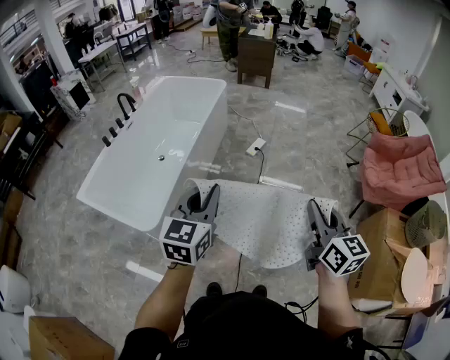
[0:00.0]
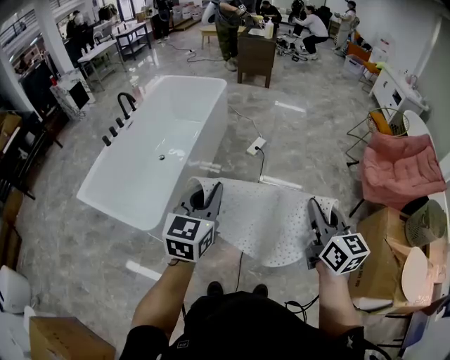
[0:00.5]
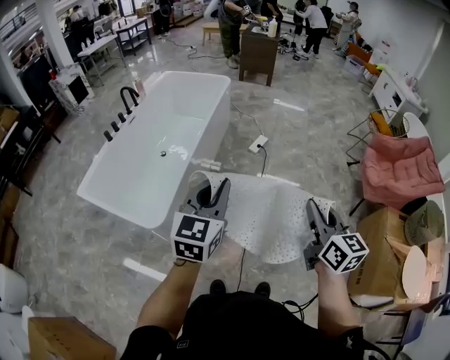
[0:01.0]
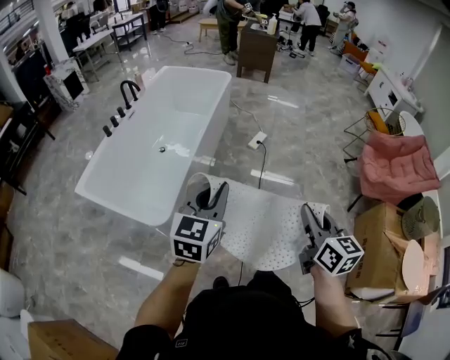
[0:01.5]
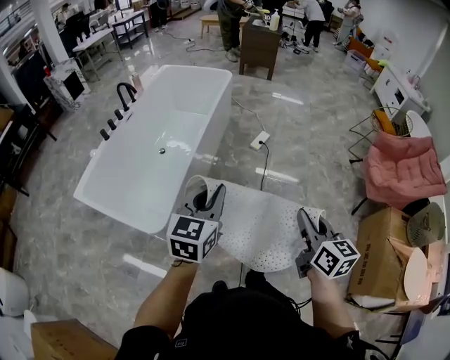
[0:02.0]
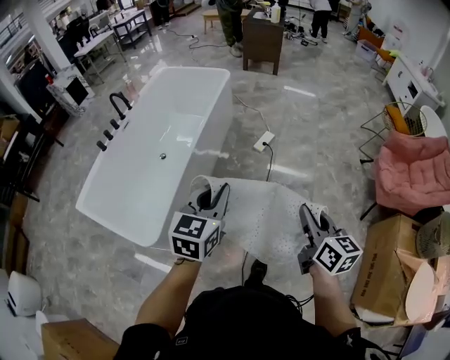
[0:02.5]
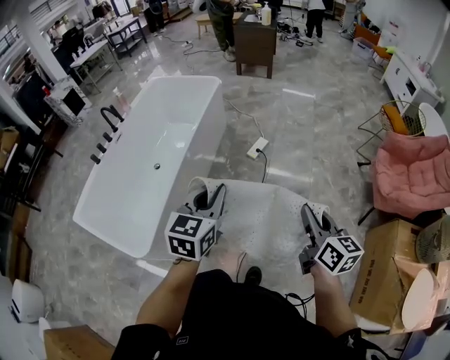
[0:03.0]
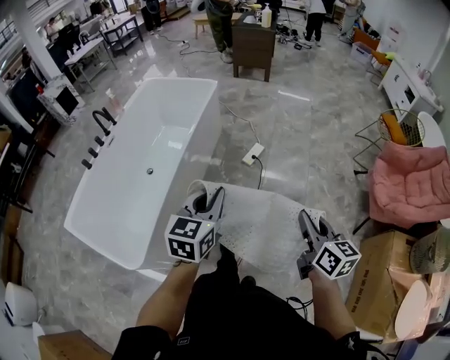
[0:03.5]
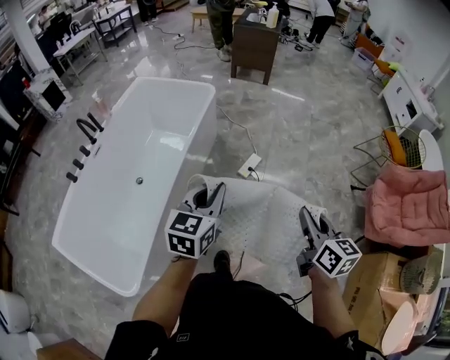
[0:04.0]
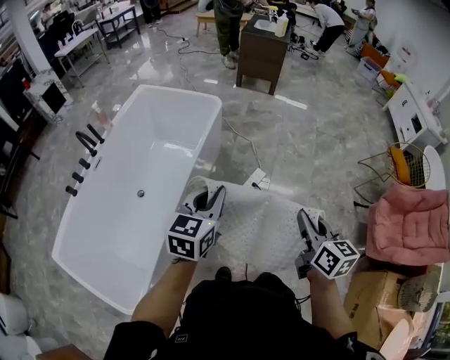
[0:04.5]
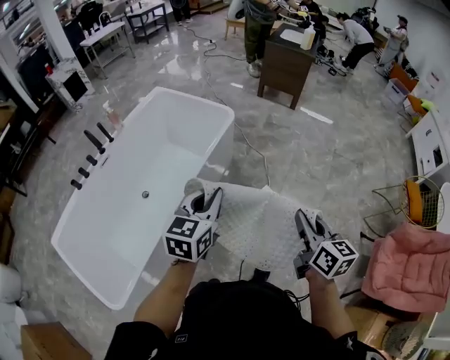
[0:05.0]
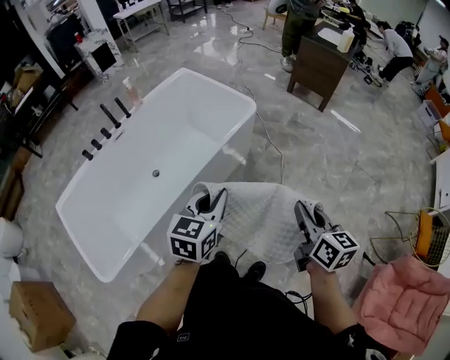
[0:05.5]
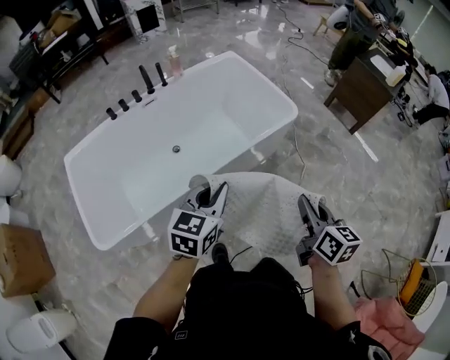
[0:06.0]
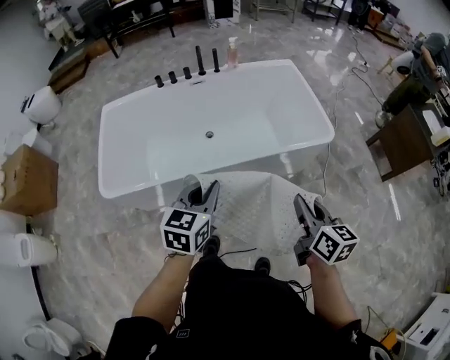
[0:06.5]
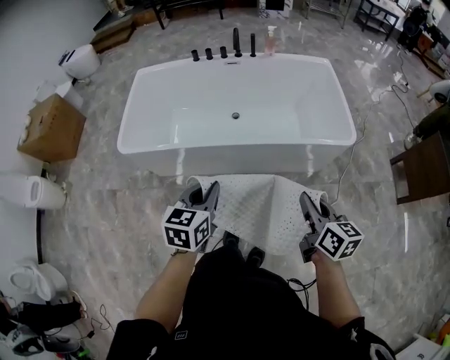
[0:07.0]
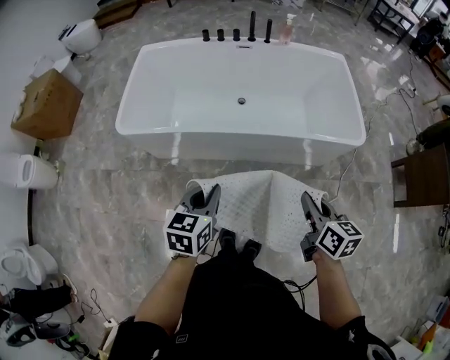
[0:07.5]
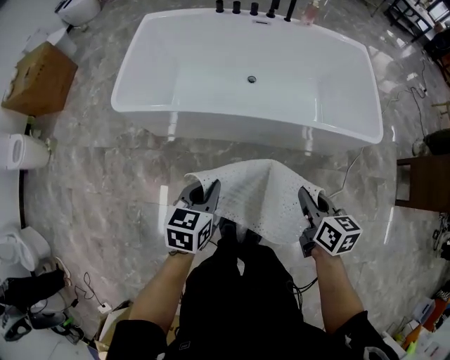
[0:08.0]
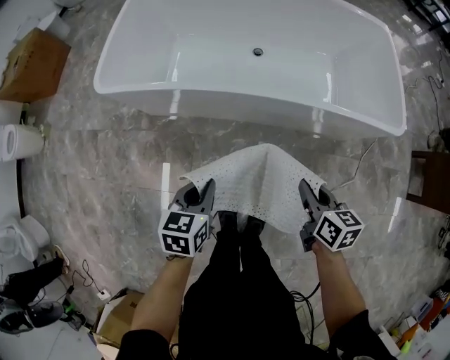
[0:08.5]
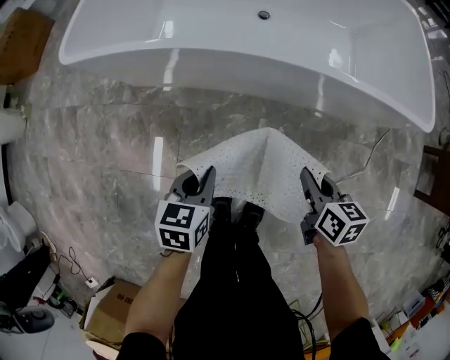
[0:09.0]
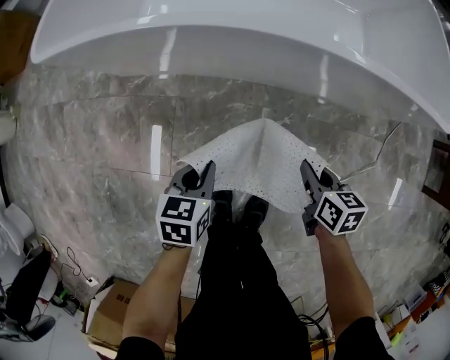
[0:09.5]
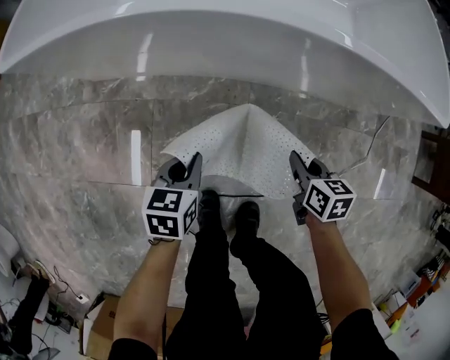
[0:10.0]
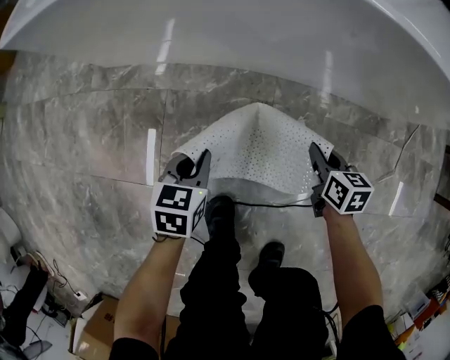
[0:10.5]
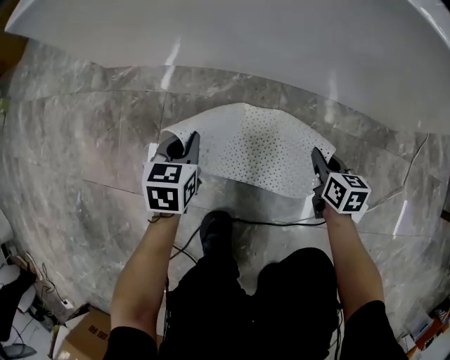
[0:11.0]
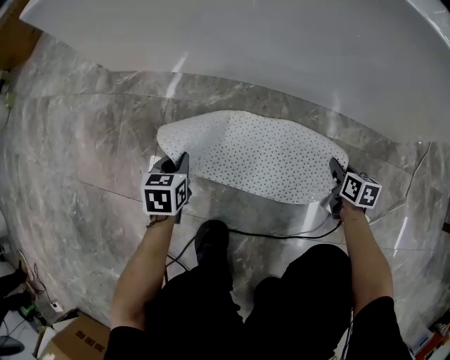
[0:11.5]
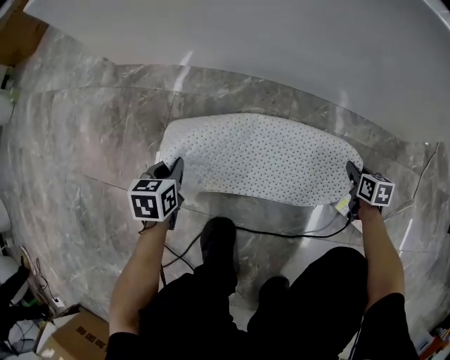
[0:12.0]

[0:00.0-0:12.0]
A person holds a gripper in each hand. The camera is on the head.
0:00.0 to 0:02.0: The left gripper is displaced to the left by about 10 cm. The right gripper goes some 10 cm to the left and downward.
0:02.0 to 0:04.0: The two grippers travel together, forward, some 40 cm.
0:04.0 to 0:06.0: The right gripper shifts by some 40 cm, and turns by roughly 40 degrees; the left gripper moves some 20 cm, and turns by roughly 40 degrees.
0:06.0 to 0:08.0: Both grippers move downward, some 15 cm. The right gripper swivels about 50 degrees. Meanwhile the left gripper turns by about 50 degrees.
0:08.0 to 0:10.0: Both grippers travel together downward, some 50 cm.
0:10.0 to 0:12.0: The right gripper shifts roughly 35 cm downward and to the right. Meanwhile the left gripper shifts about 30 cm downward and to the left.

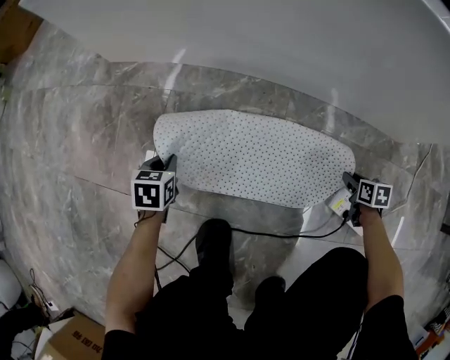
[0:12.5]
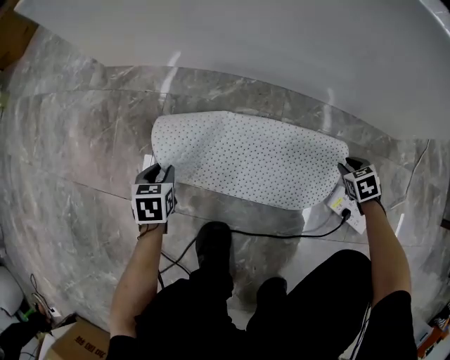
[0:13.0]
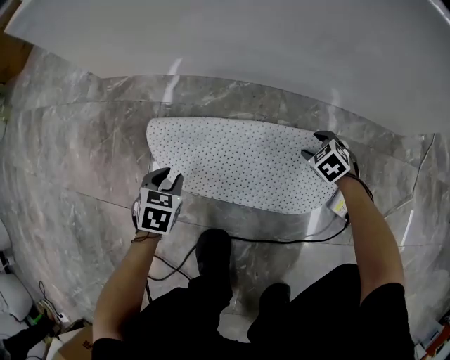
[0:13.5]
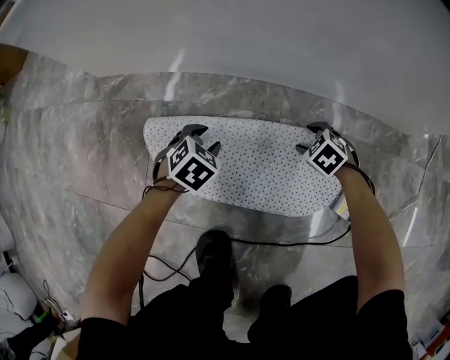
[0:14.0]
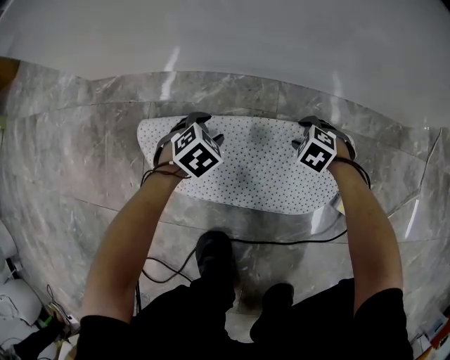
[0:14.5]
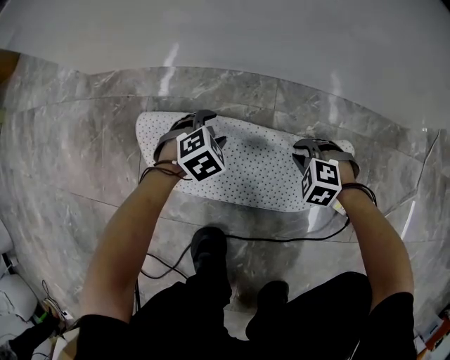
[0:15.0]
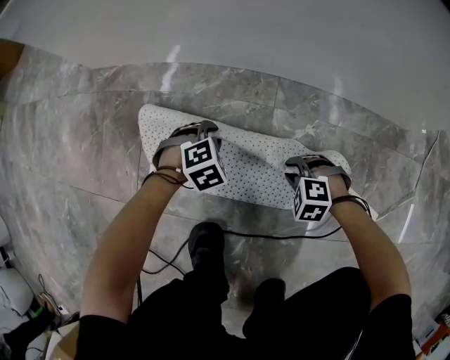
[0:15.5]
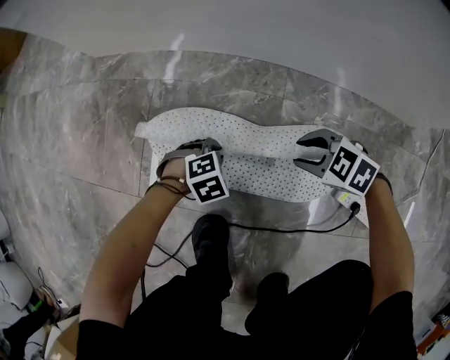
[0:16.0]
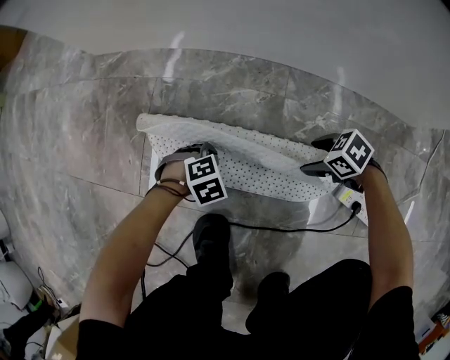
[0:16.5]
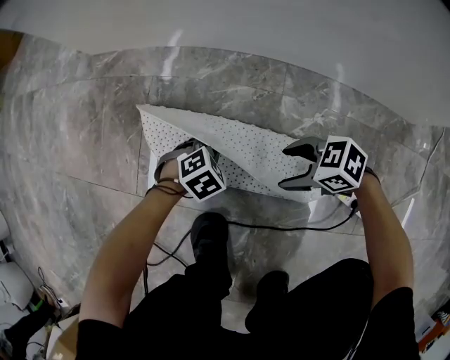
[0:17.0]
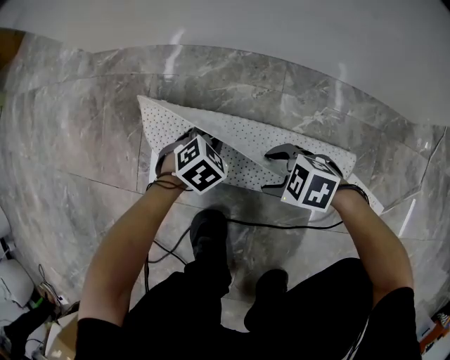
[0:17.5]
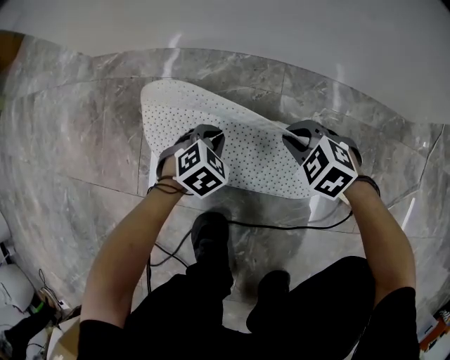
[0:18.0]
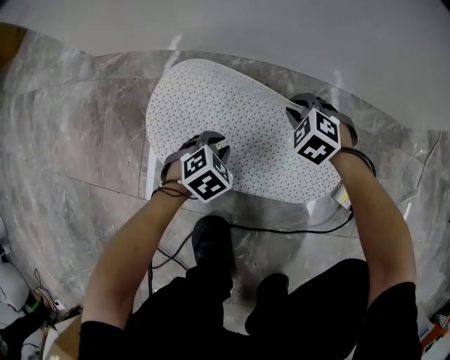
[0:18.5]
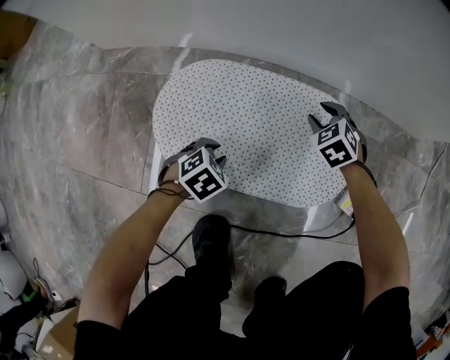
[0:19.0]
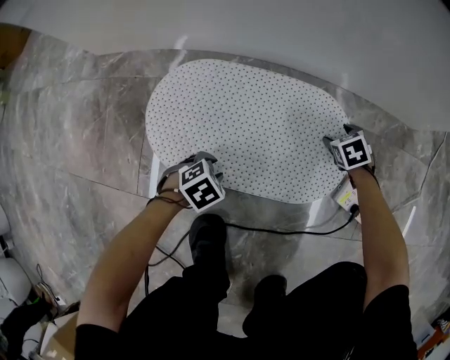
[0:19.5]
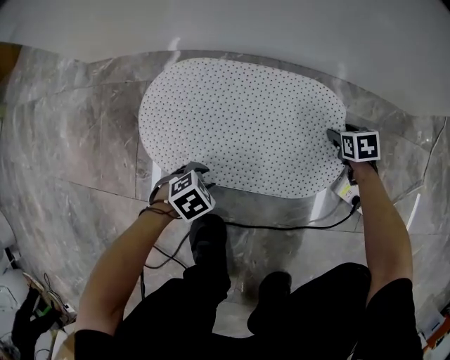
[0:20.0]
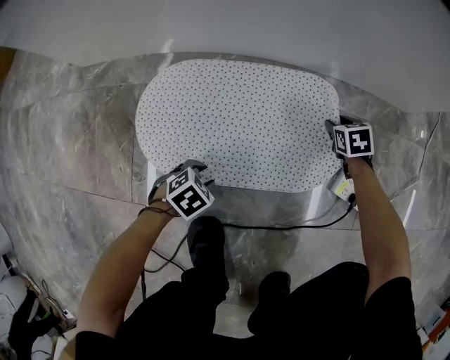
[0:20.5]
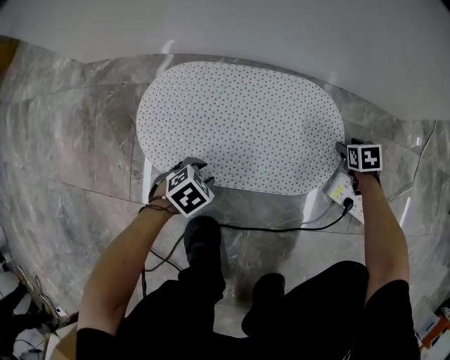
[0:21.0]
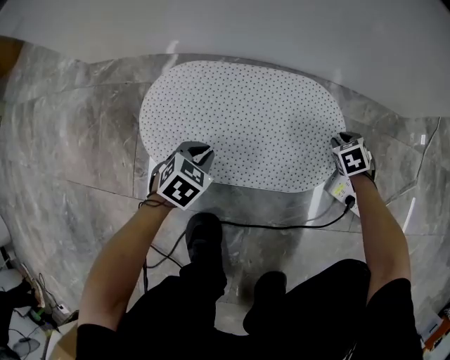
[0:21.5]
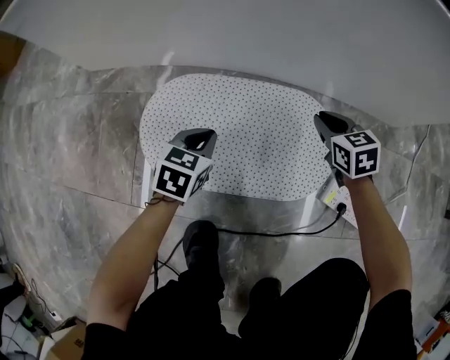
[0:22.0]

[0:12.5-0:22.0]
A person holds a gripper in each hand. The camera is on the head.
0:12.5 to 0:14.5: The right gripper shifts by roughly 20 cm, rotates around the line of its fingers by about 60 degrees, counterclockwise from behind, and opens its fingers. The left gripper changes place by approximately 20 cm, rolls clockwise, seen from behind, by roughly 50 degrees, and opens up.
0:14.5 to 0:16.5: The left gripper ends up about 15 cm from where it was, turns by roughly 20 degrees, and closes its fingers. The right gripper goes upward and returns, some 10 cm each way, turns by about 40 degrees, and closes, then reopens.
0:16.5 to 0:18.0: The left gripper moves approximately 10 cm, and rotates roughly 20 degrees. Meanwhile the right gripper moves approximately 10 cm, rotates roughly 40 degrees, and closes up.
0:18.0 to 0:20.0: The left gripper ends up some 15 cm from where it was, changes its angle by approximately 20 degrees, and opens. The right gripper moves approximately 25 cm, twists roughly 60 degrees clockwise, seen from behind, and opens its fingers.
0:20.0 to 0:22.0: The left gripper changes place by approximately 20 cm, swivels approximately 50 degrees, and closes. The right gripper goes roughly 15 cm upward, turns by about 30 degrees, and closes.

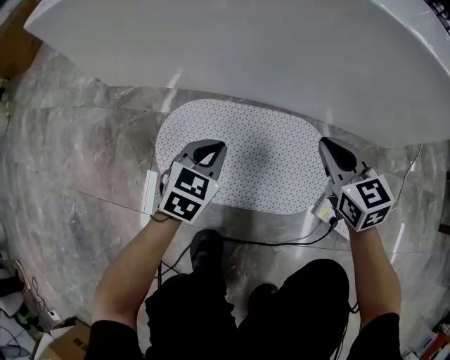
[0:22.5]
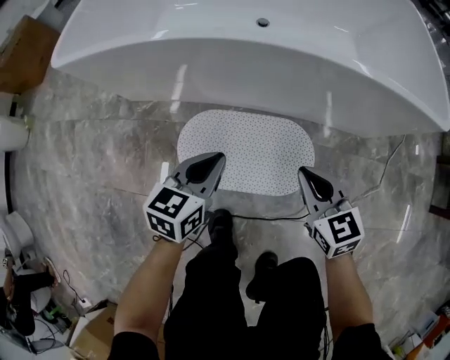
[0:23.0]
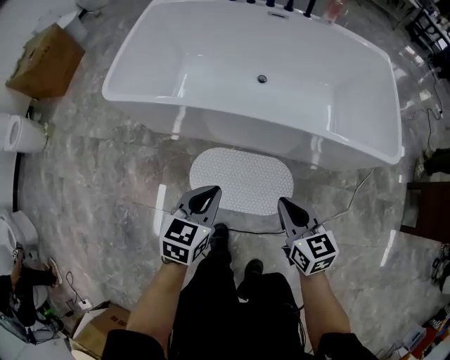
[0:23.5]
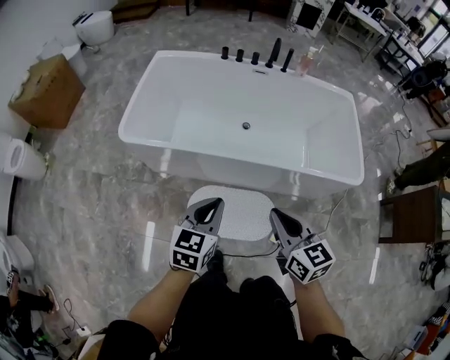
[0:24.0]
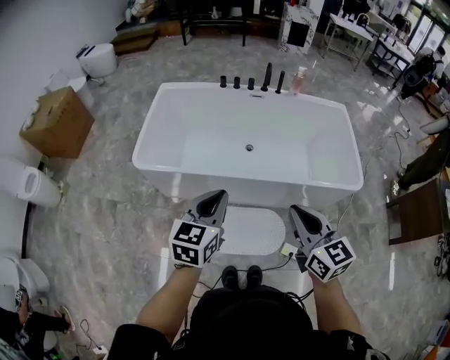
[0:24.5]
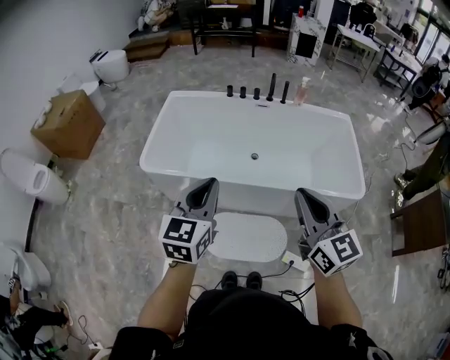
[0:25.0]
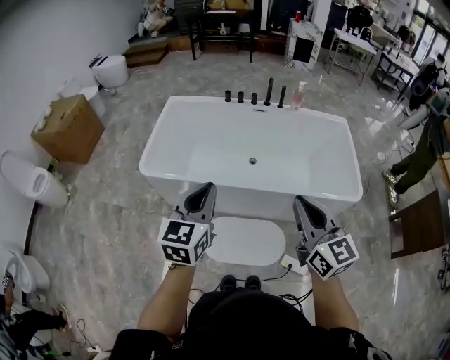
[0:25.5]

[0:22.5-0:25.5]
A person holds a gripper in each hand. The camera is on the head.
0:22.5 to 0:24.0: The grippers both shift upward by about 70 cm. The left gripper rotates about 20 degrees.
0:24.0 to 0:25.5: Both grippers move upward, some 20 cm. The right gripper turns by approximately 20 degrees.

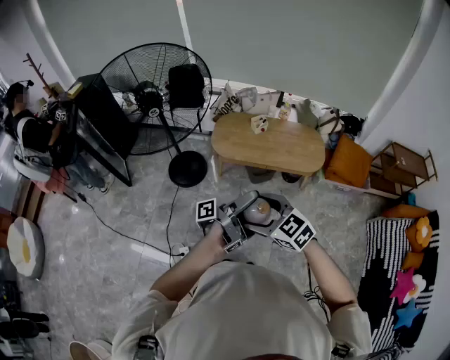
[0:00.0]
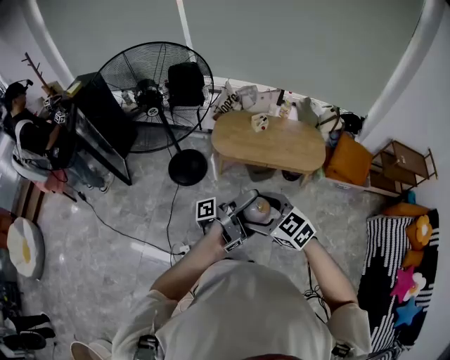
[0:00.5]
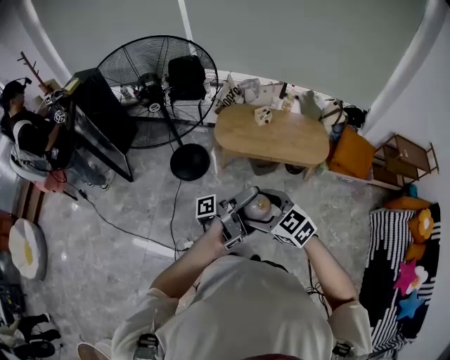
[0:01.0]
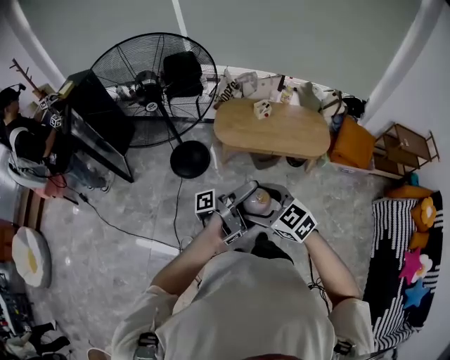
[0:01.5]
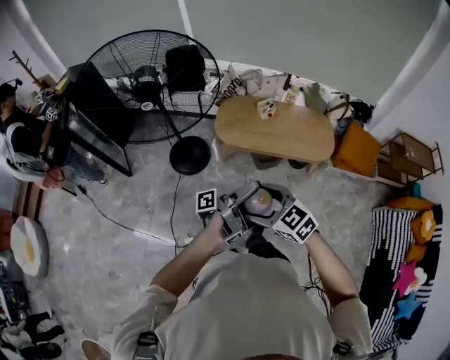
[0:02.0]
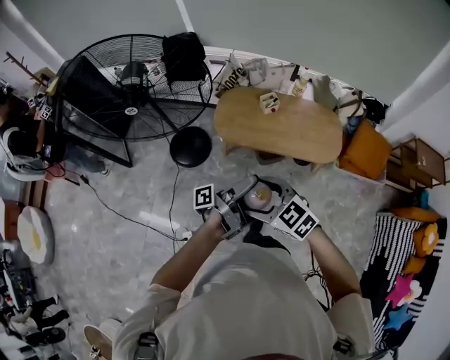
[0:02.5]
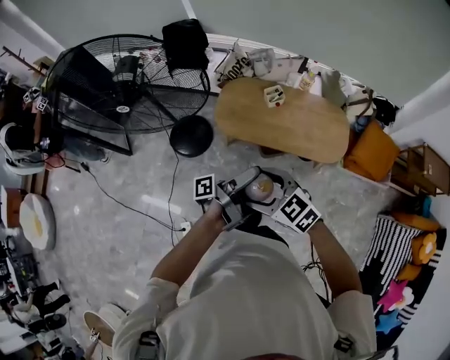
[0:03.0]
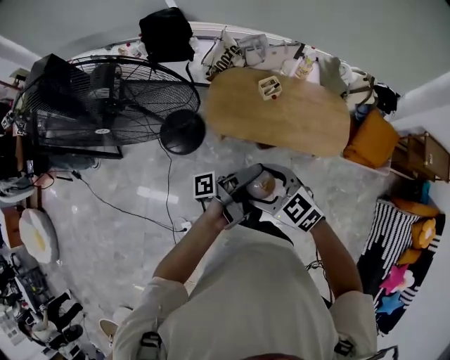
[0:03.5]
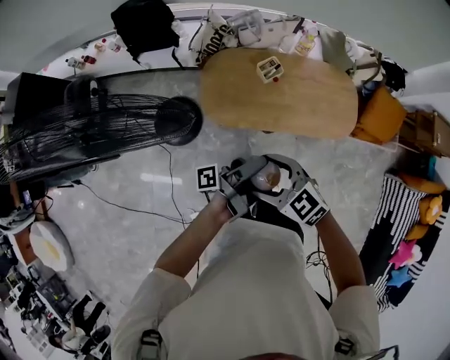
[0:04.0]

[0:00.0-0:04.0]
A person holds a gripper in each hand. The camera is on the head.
0:00.0 to 0:02.0: The right gripper moves roughly 10 cm.
0:02.0 to 0:04.0: The right gripper changes place by approximately 40 cm.
